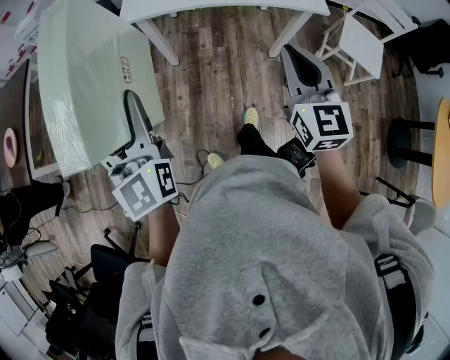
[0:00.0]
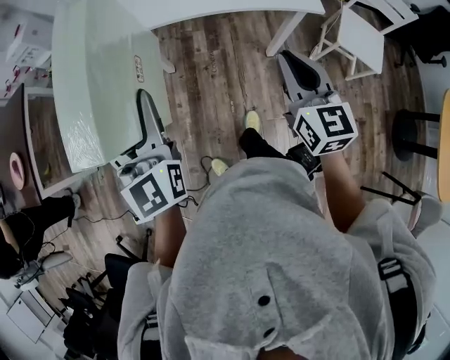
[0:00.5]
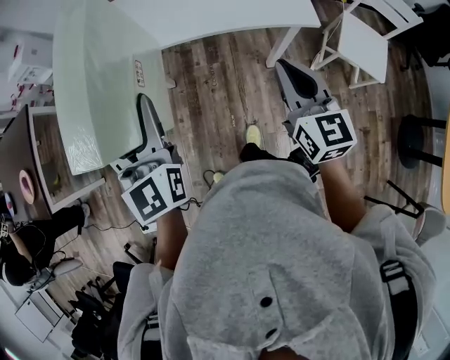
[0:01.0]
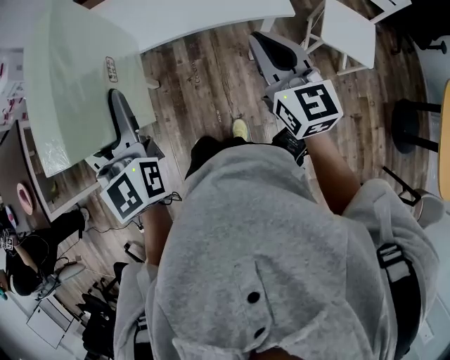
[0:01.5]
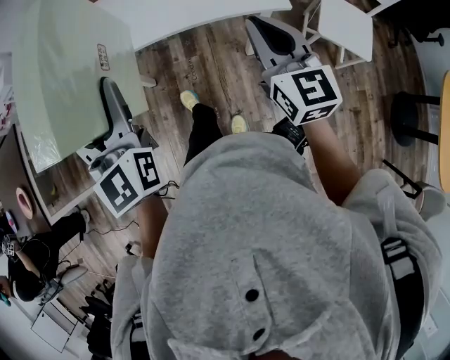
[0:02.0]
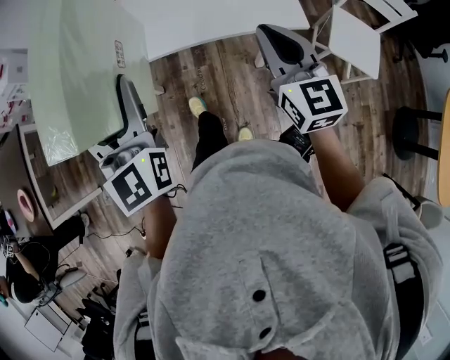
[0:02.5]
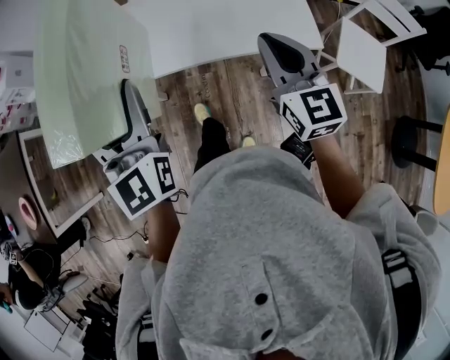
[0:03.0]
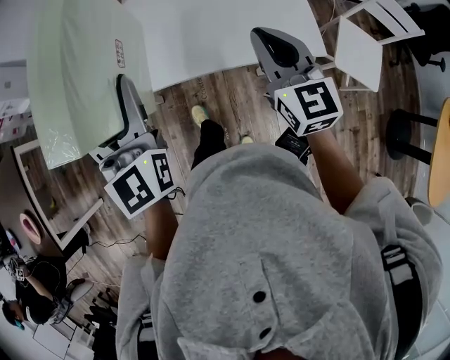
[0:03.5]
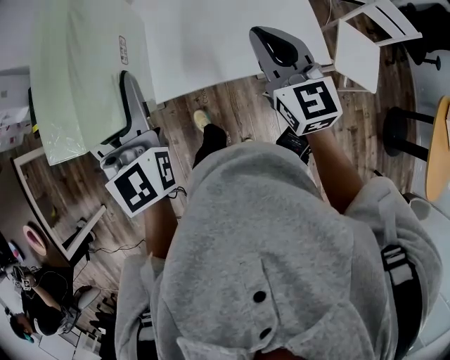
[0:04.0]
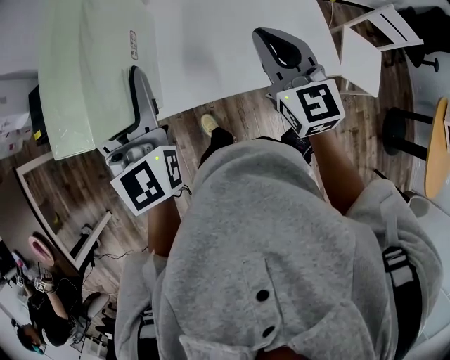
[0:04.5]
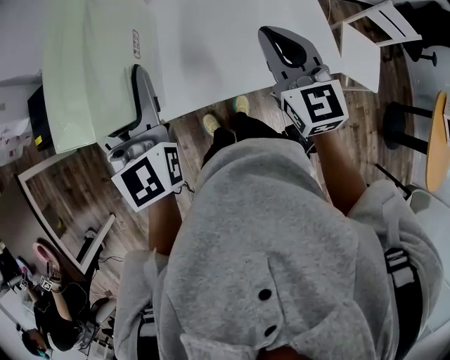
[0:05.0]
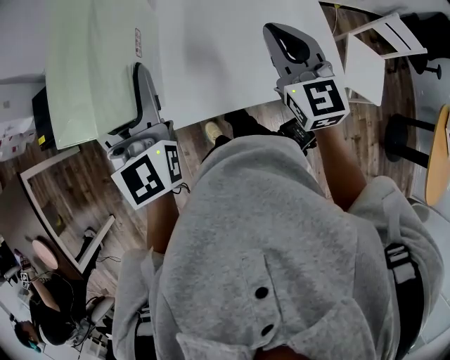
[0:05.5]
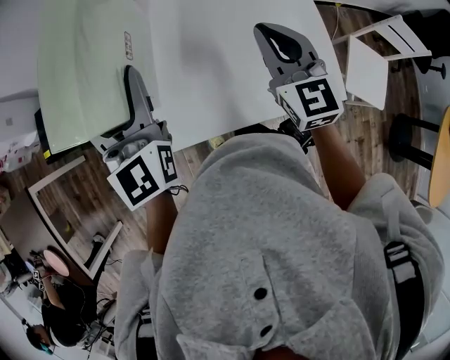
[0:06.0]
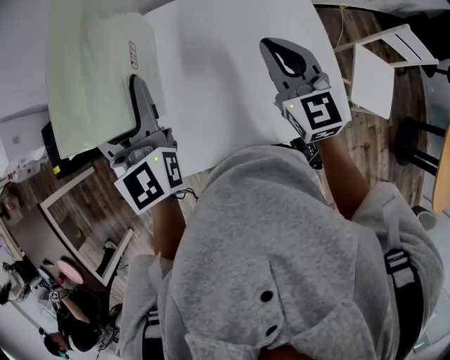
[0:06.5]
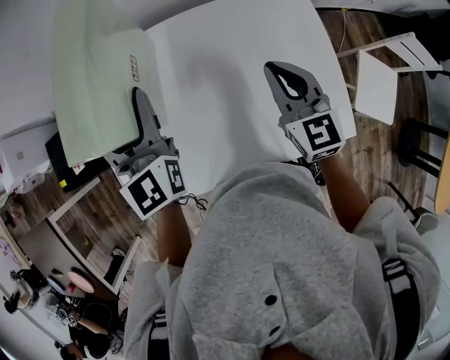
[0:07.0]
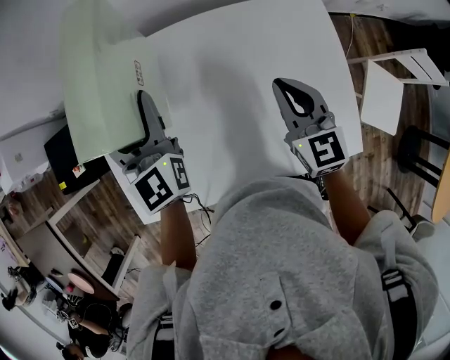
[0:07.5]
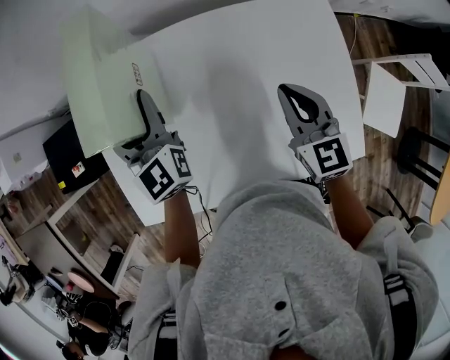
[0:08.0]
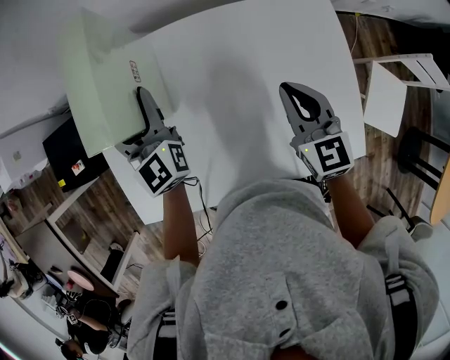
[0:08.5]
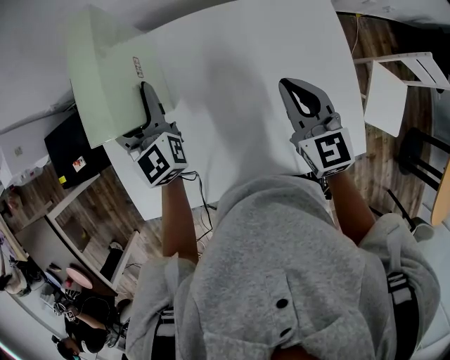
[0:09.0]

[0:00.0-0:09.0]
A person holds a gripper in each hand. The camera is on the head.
0:00.0 to 0:02.0: Both grippers travel together to the right and forward, some 25 cm.
0:02.0 to 0:04.5: The right gripper heads forward and to the left, covering about 30 cm, while the left gripper goes roughly 30 cm forward.
0:04.5 to 0:07.0: The left gripper shifts about 25 cm forward, while the right gripper shifts roughly 20 cm forward and to the right.
0:07.0 to 0:09.0: The left gripper shifts some 15 cm downward and forward.

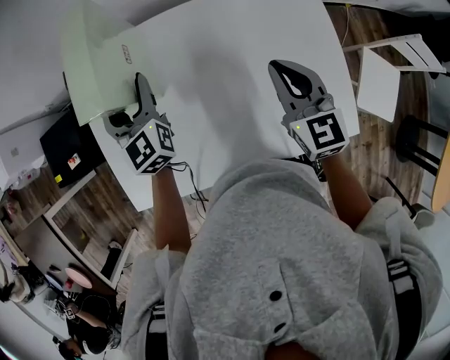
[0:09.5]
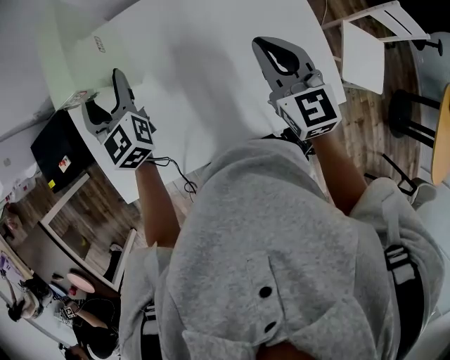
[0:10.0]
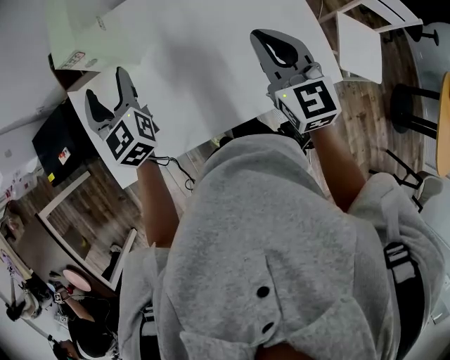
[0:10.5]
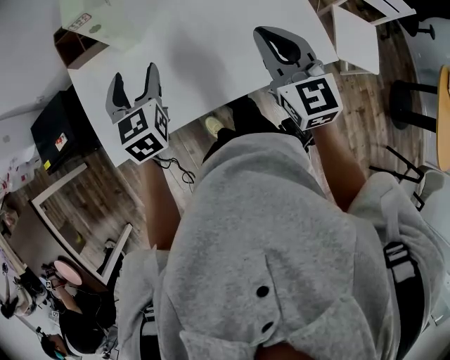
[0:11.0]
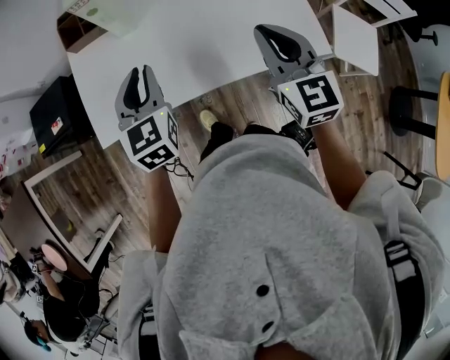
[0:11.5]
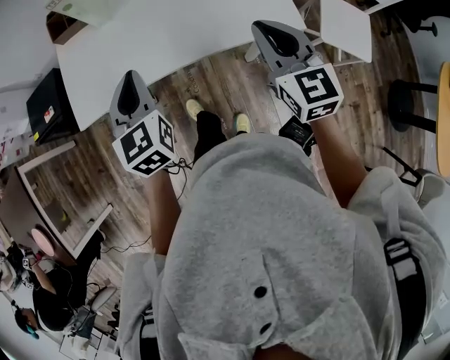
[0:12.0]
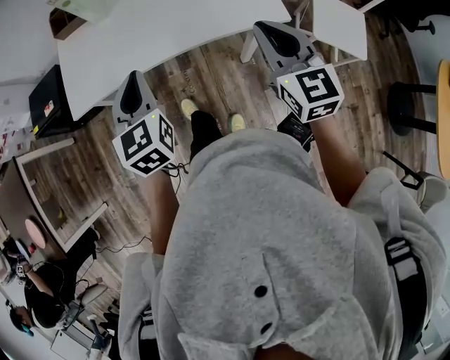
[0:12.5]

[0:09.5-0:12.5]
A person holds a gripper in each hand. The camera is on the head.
0:09.5 to 0:11.0: Both grippers travel together backward, about 20 cm. The left gripper turns by approximately 20 degrees.
0:11.0 to 0:12.5: Both grippers travel together backward and to the right, some 25 cm. The left gripper closes up.

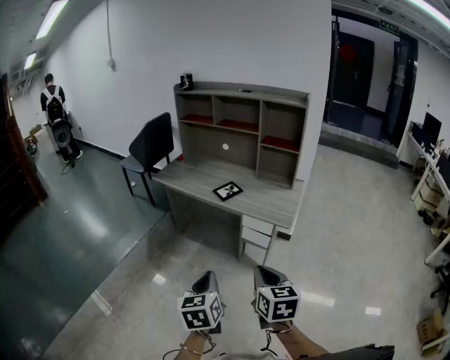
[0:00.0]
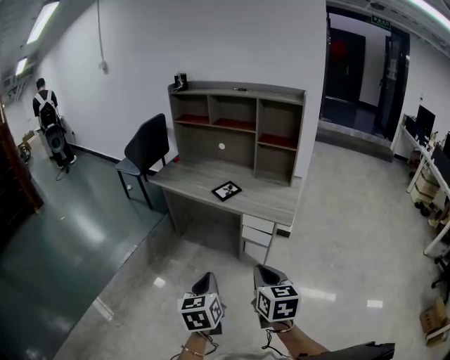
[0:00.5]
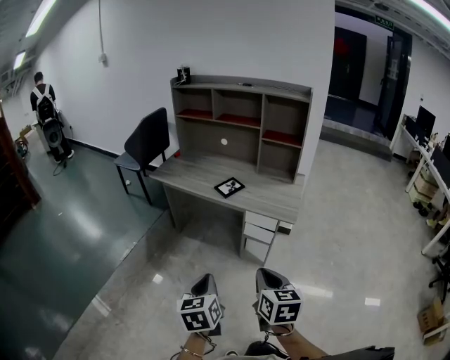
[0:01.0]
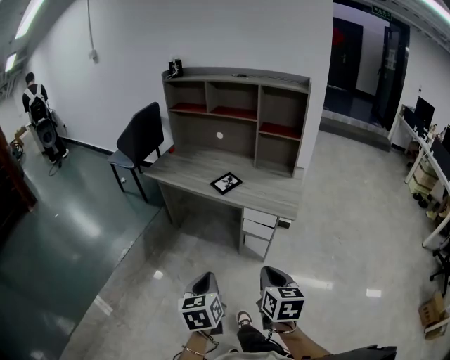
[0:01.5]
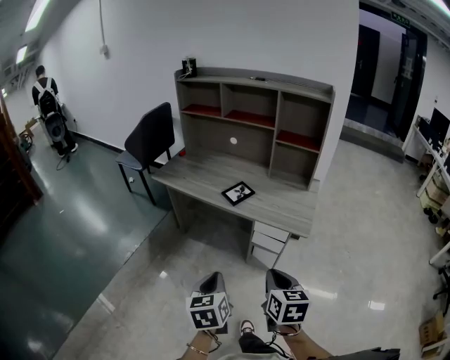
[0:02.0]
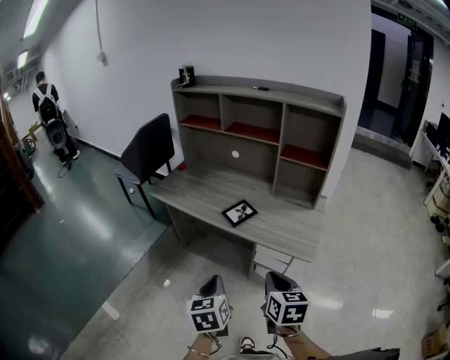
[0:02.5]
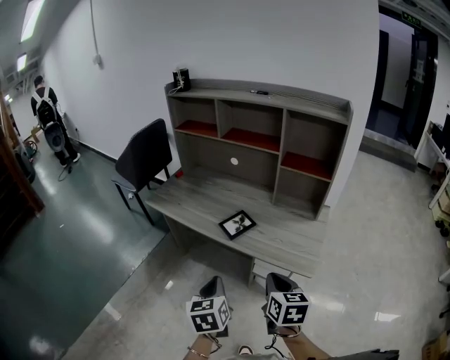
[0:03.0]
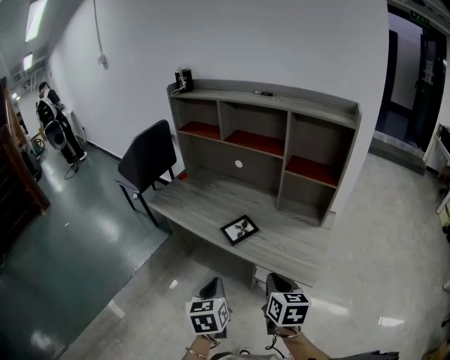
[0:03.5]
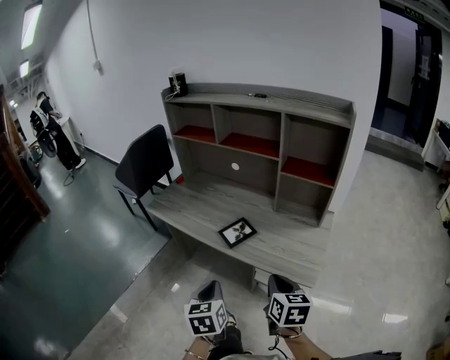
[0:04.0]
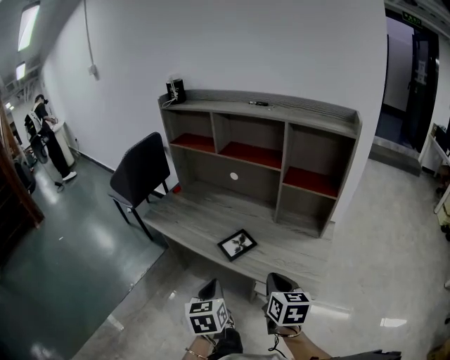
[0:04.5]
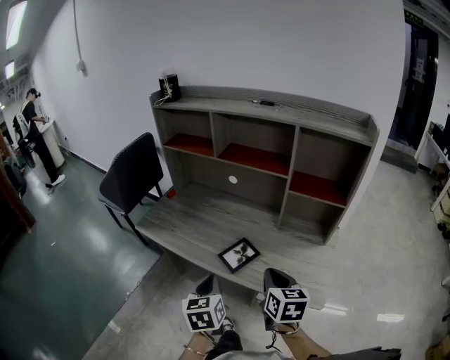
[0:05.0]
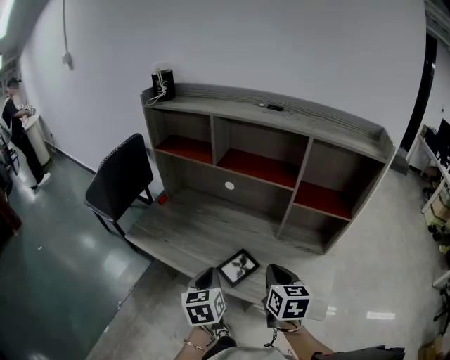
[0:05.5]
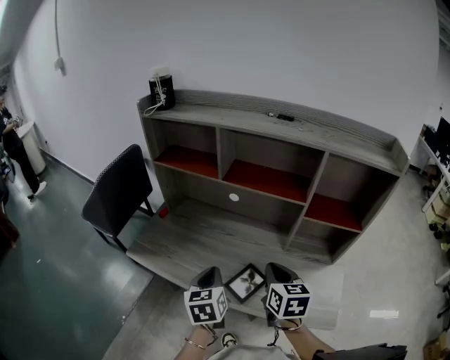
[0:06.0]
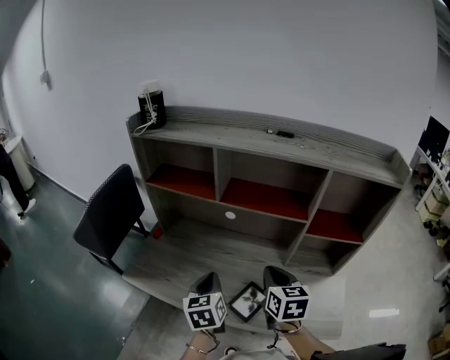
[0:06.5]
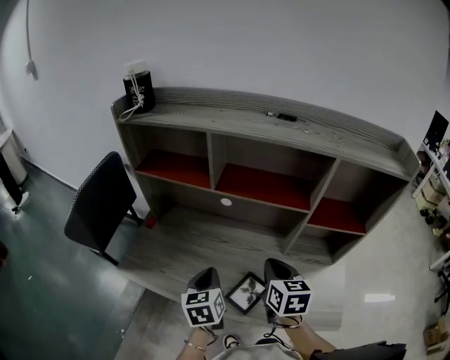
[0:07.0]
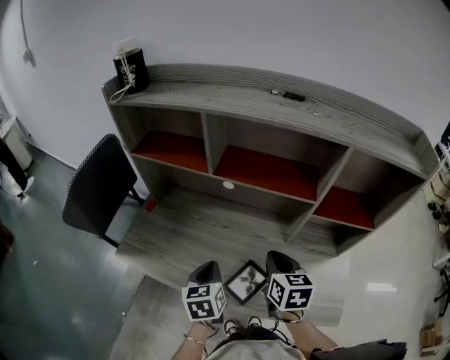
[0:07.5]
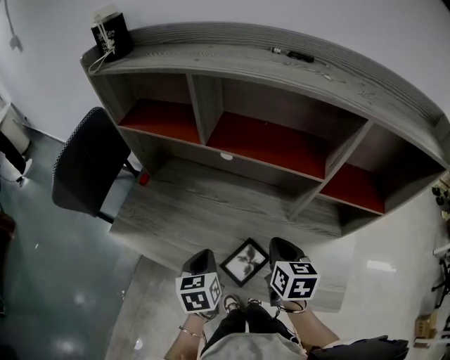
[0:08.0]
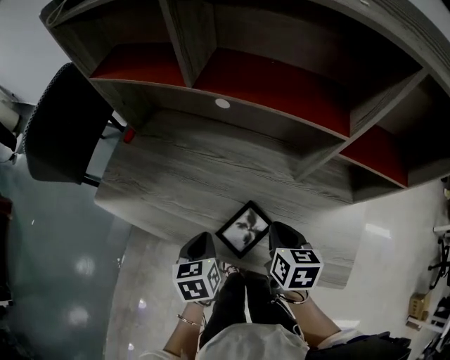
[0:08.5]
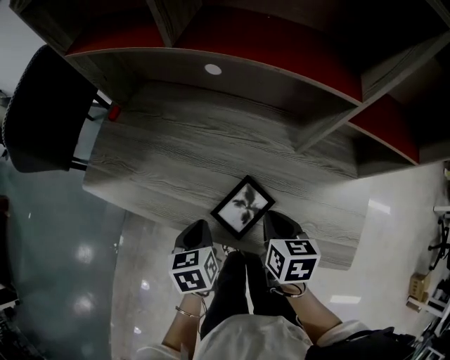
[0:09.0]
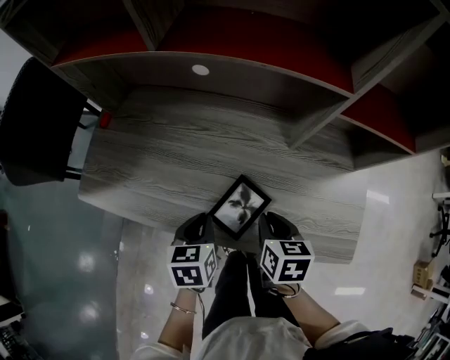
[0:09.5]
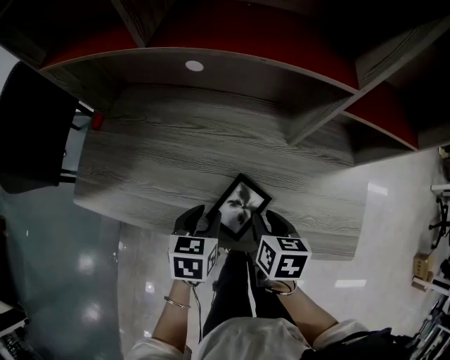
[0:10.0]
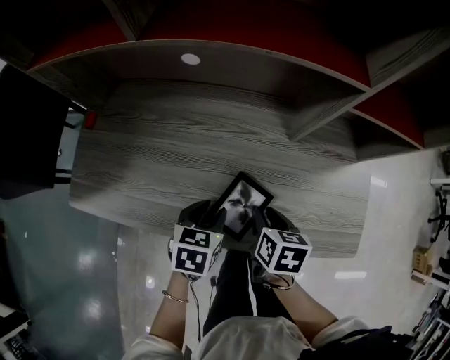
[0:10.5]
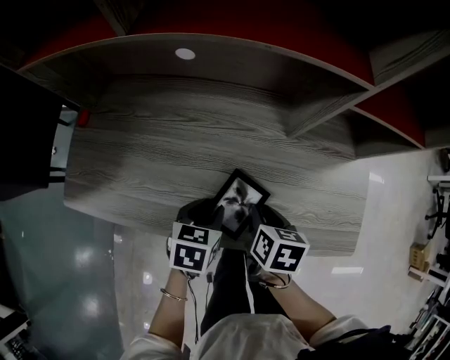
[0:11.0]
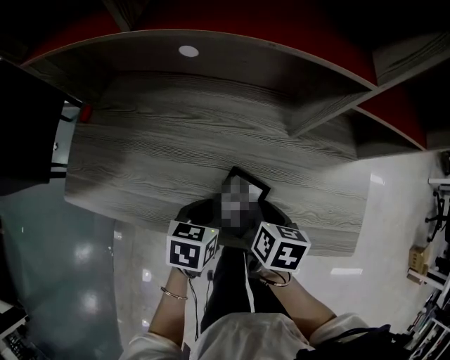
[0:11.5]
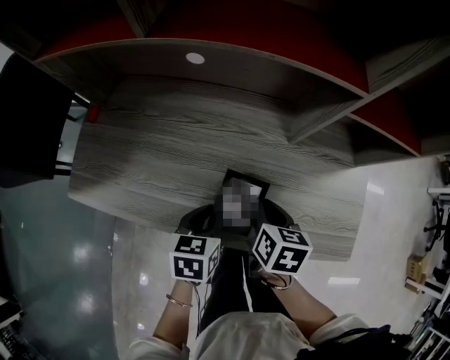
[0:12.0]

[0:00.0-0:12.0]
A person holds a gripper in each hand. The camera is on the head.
0:00.0 to 0:02.0: The two grippers go some 10 cm forward.
0:02.0 to 0:04.0: The two grippers go some 20 cm forward.
0:04.0 to 0:06.0: Both grippers travel together forward, some 30 cm.
0:06.0 to 0:08.0: Both grippers move downward and forward, roughly 10 cm.
0:08.0 to 0:10.0: The left gripper heads downward, covering approximately 10 cm, rotates roughly 30 degrees, and opens, while the right gripper is displaced downward and backward by some 15 cm, and rotates some 20 degrees.
0:10.0 to 0:12.0: The grippers move only a little.

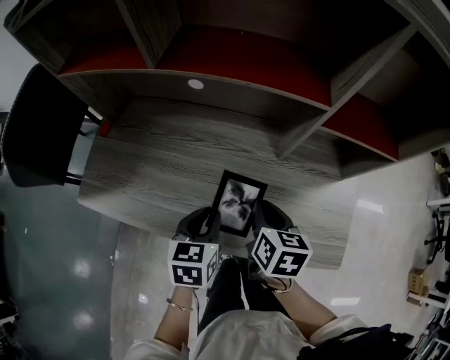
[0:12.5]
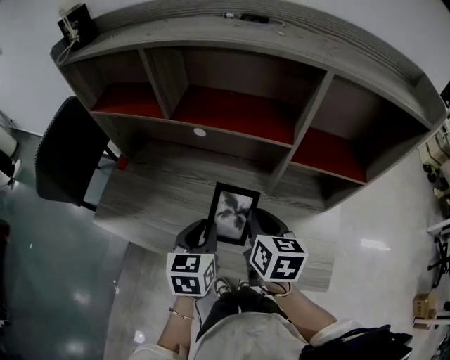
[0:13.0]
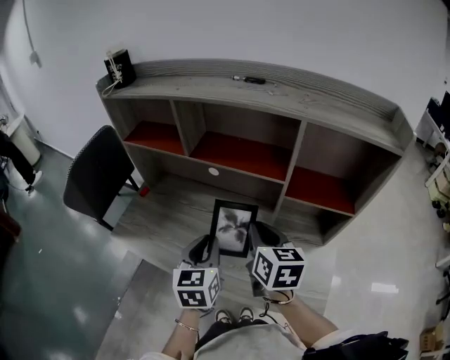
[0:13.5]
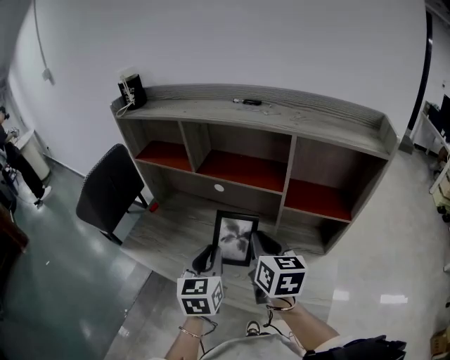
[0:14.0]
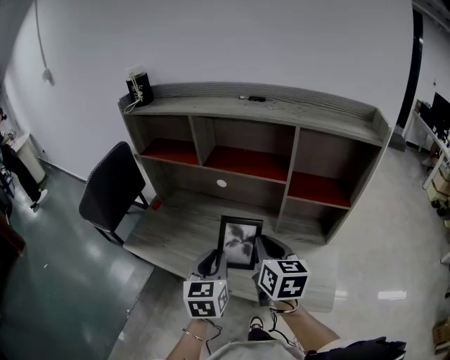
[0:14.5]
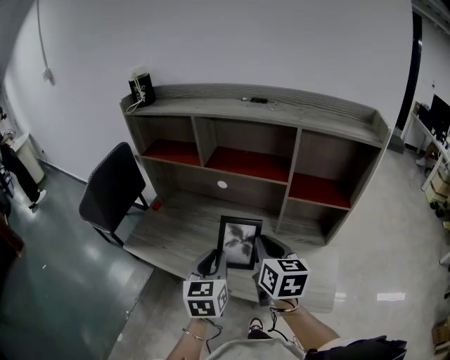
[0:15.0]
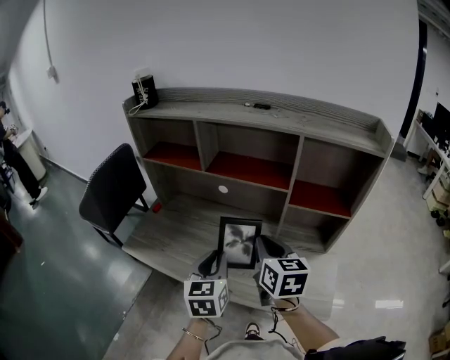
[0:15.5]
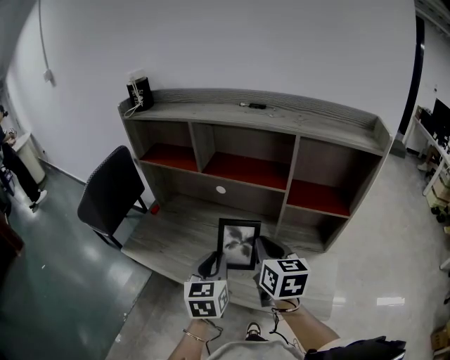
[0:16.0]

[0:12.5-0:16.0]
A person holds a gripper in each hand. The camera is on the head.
0:12.5 to 0:14.5: The two grippers go roughly 20 cm upward. The left gripper turns by roughly 30 degrees. Meanwhile the right gripper swivels roughly 30 degrees.
0:14.5 to 0:16.0: The grippers move only a little.
